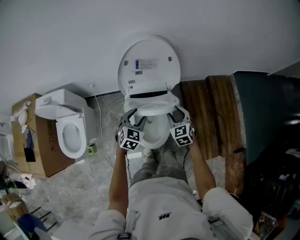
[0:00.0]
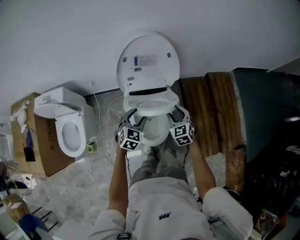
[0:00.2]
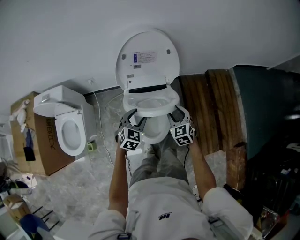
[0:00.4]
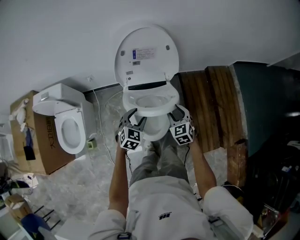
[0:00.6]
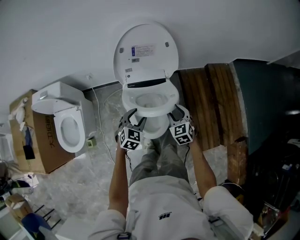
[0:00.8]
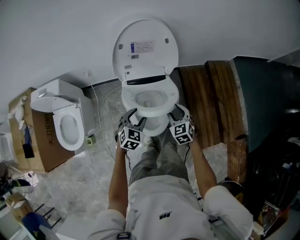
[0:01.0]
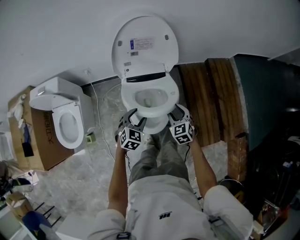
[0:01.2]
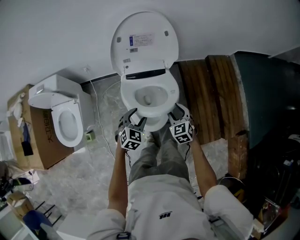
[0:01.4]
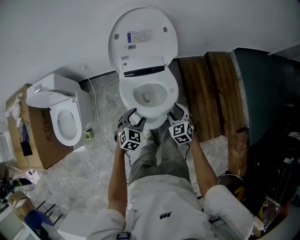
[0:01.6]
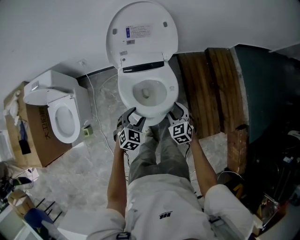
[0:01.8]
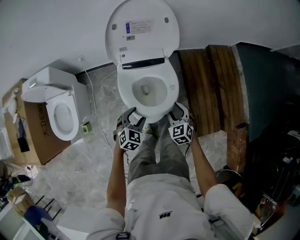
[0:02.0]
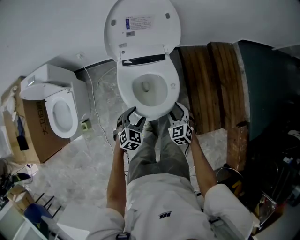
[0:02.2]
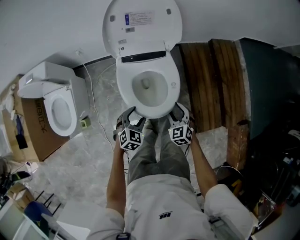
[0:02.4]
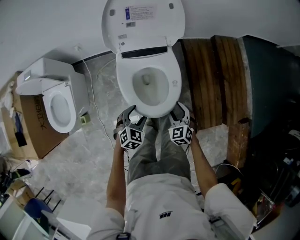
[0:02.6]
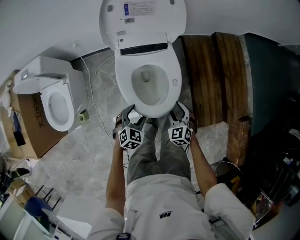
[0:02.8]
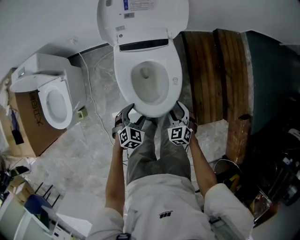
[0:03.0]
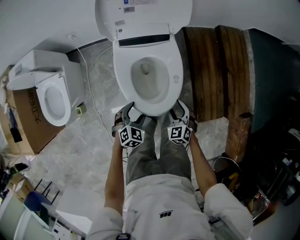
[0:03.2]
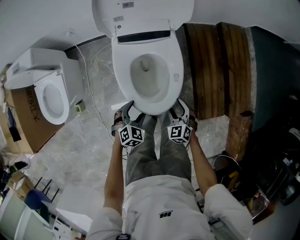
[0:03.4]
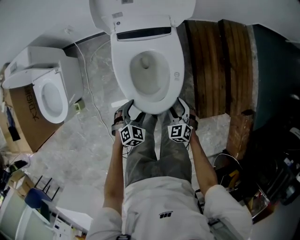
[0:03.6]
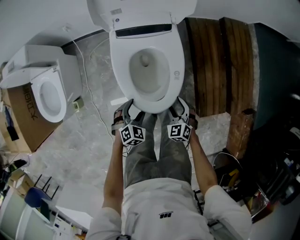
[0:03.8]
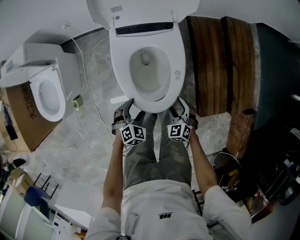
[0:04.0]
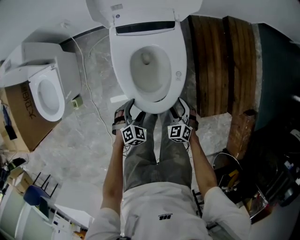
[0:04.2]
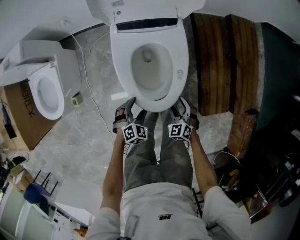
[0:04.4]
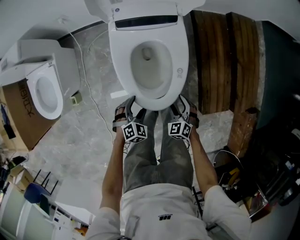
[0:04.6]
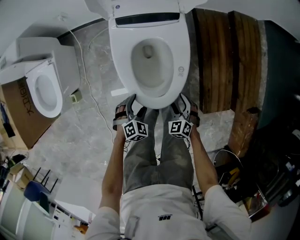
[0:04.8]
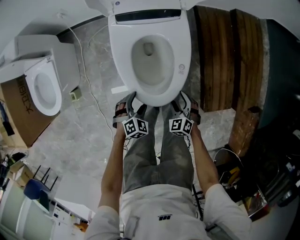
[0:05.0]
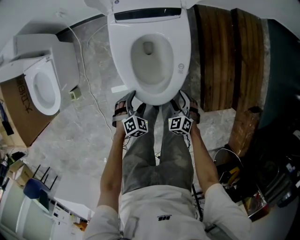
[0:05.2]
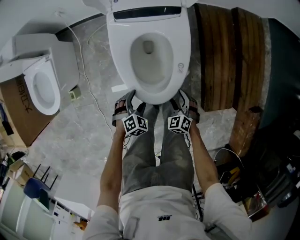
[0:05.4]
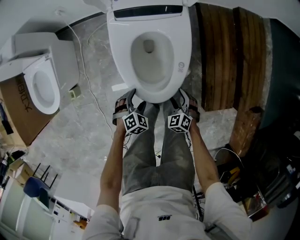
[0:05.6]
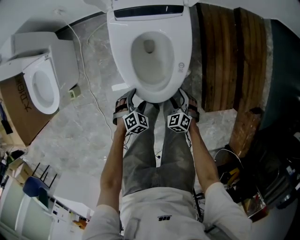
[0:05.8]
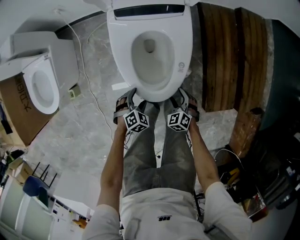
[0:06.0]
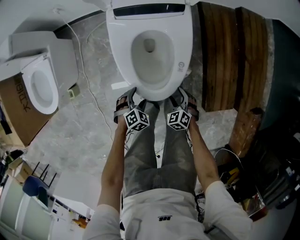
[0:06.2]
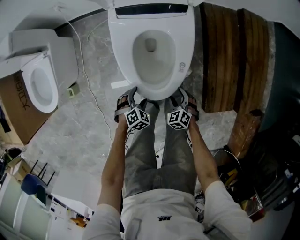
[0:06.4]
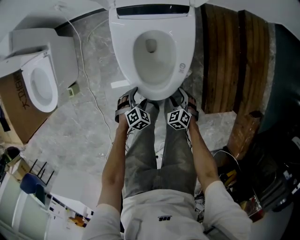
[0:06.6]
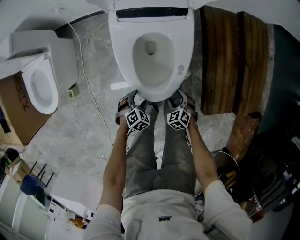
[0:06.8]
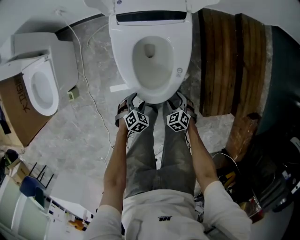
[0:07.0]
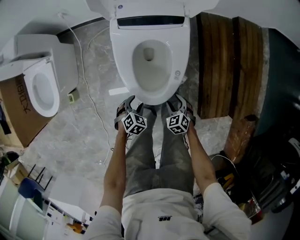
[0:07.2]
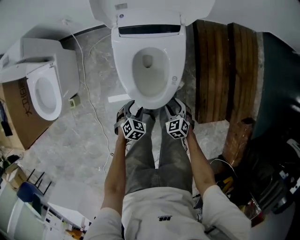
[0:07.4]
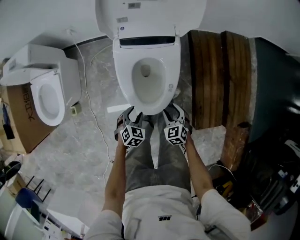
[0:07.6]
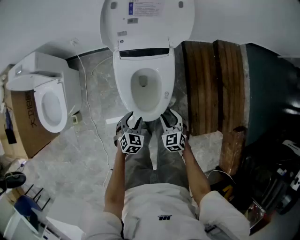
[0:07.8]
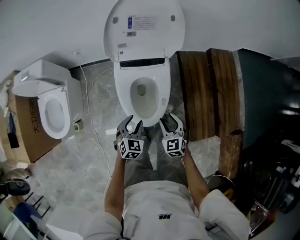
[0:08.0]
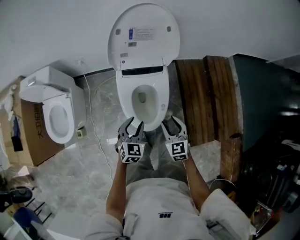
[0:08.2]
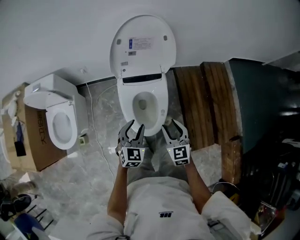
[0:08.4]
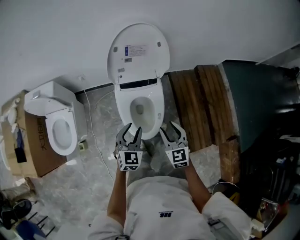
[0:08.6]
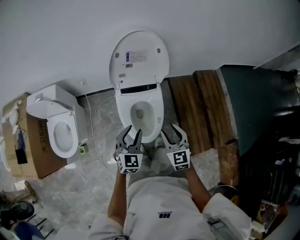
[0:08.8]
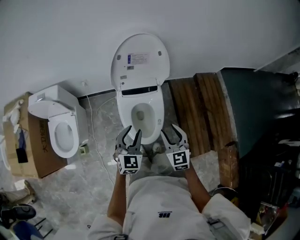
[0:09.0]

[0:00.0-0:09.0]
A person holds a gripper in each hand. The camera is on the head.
0:00.0 to 0:01.6: Both grippers move backward and downward, about 15 cm.
0:01.6 to 0:03.0: The two grippers go some 15 cm downward and backward.
0:03.0 to 0:04.4: The two grippers go approximately 10 cm downward.
0:04.4 to 0:06.0: Both grippers travel together downward, approximately 10 cm.
0:06.0 to 0:07.6: The grippers both shift upward by some 10 cm. The left gripper changes its angle by about 20 degrees, and closes up.
0:07.6 to 0:09.0: Both grippers travel together upward, approximately 40 cm. The left gripper angles its fingers upward, by about 40 degrees; the right gripper rotates about 30 degrees.

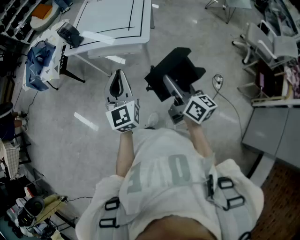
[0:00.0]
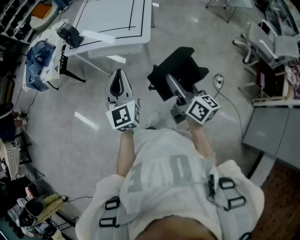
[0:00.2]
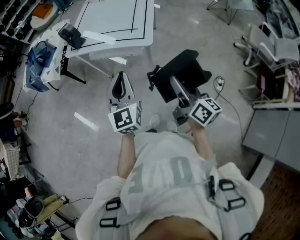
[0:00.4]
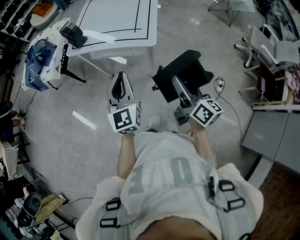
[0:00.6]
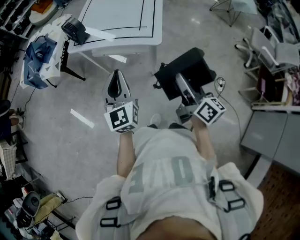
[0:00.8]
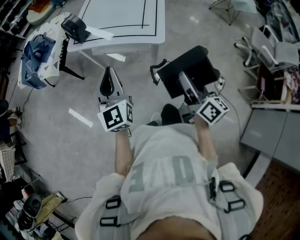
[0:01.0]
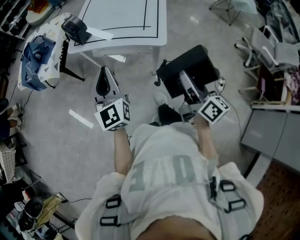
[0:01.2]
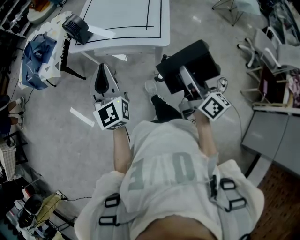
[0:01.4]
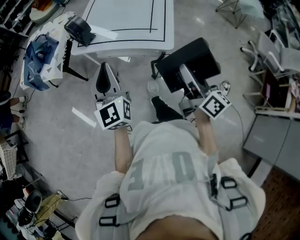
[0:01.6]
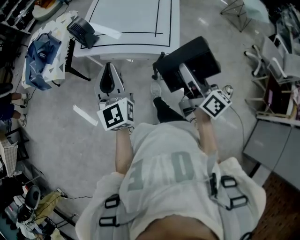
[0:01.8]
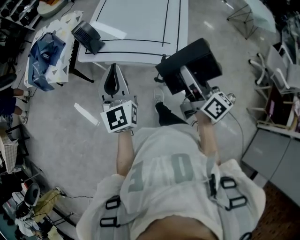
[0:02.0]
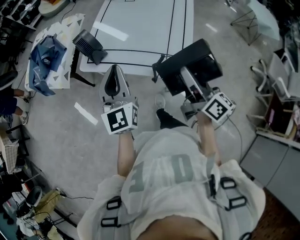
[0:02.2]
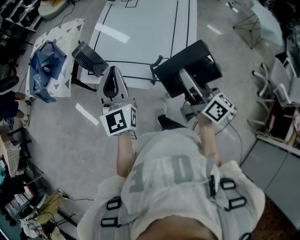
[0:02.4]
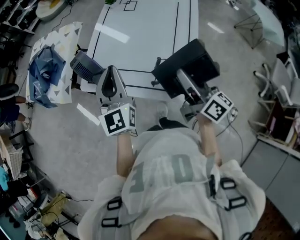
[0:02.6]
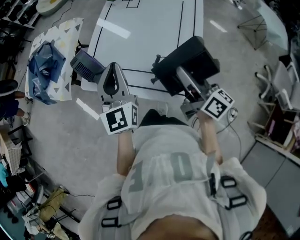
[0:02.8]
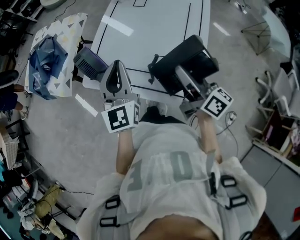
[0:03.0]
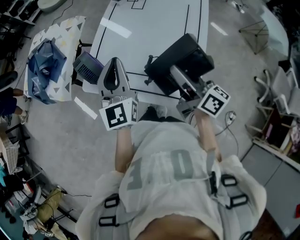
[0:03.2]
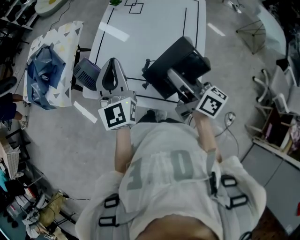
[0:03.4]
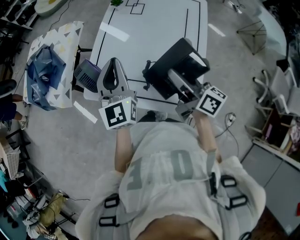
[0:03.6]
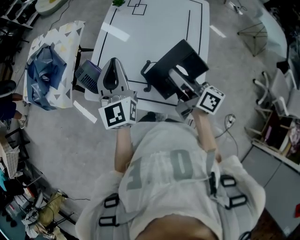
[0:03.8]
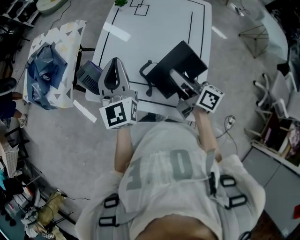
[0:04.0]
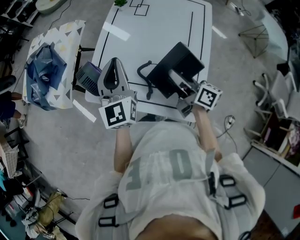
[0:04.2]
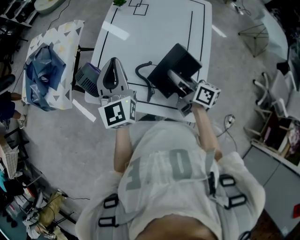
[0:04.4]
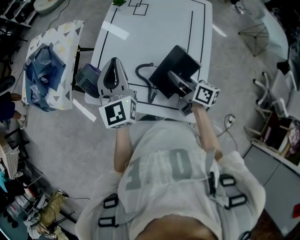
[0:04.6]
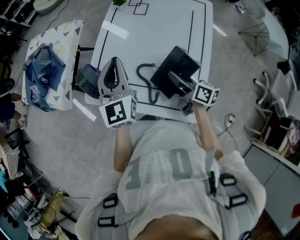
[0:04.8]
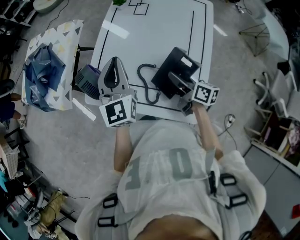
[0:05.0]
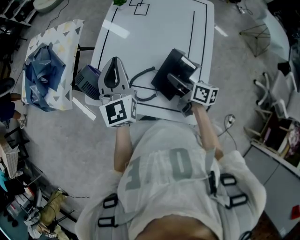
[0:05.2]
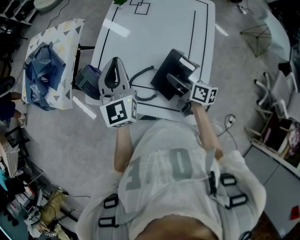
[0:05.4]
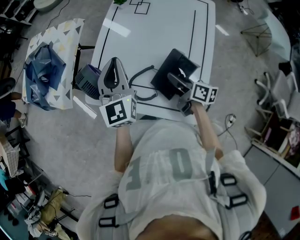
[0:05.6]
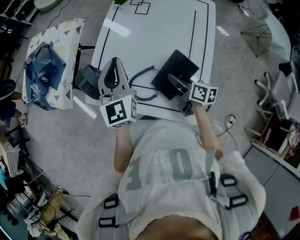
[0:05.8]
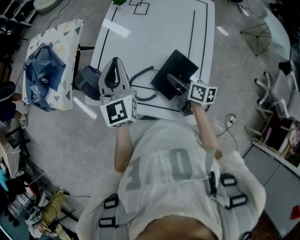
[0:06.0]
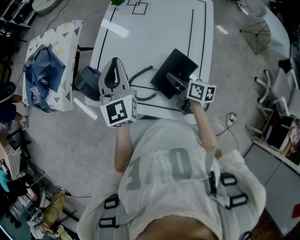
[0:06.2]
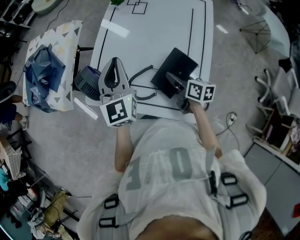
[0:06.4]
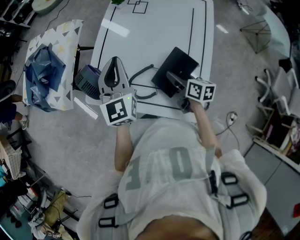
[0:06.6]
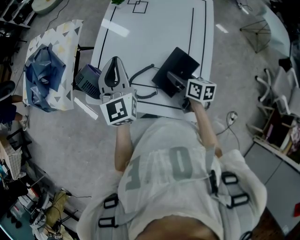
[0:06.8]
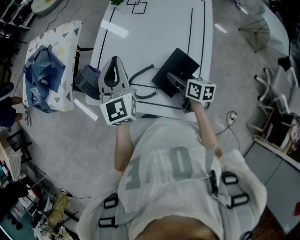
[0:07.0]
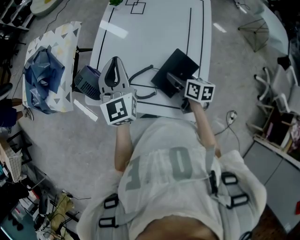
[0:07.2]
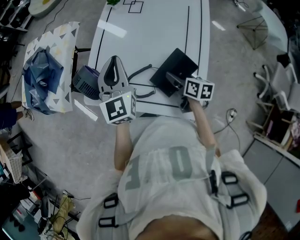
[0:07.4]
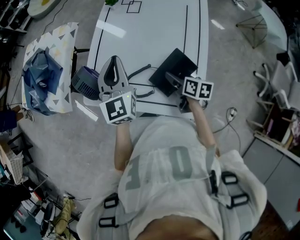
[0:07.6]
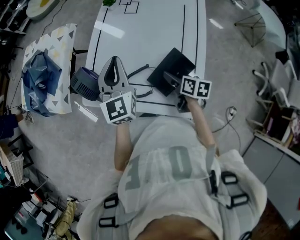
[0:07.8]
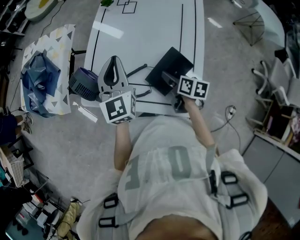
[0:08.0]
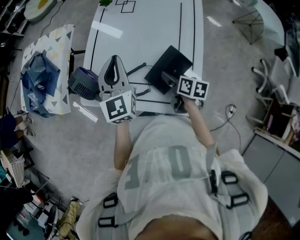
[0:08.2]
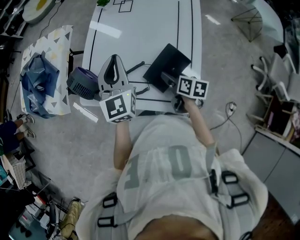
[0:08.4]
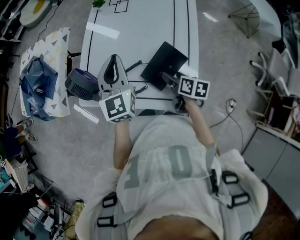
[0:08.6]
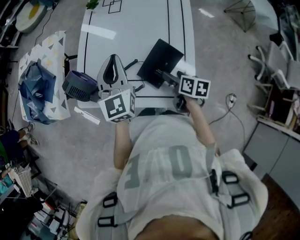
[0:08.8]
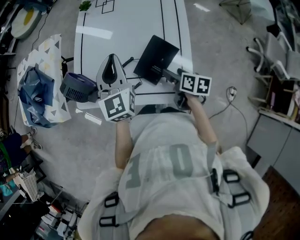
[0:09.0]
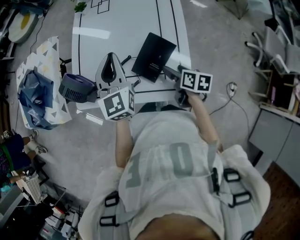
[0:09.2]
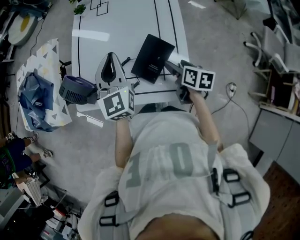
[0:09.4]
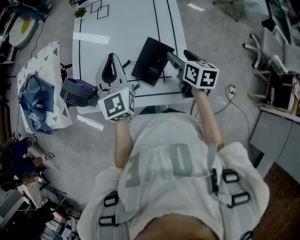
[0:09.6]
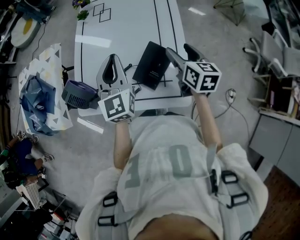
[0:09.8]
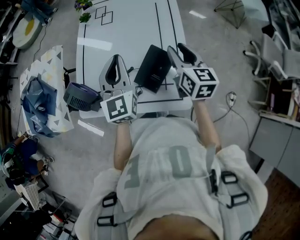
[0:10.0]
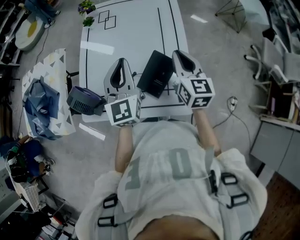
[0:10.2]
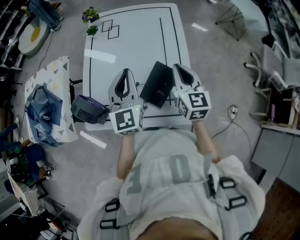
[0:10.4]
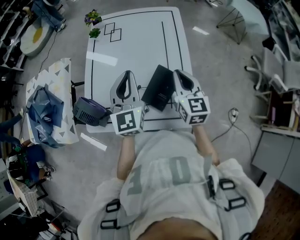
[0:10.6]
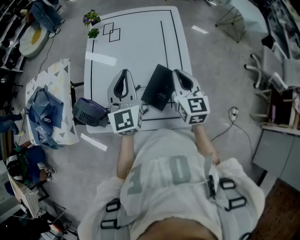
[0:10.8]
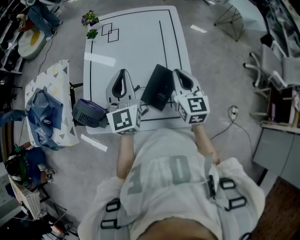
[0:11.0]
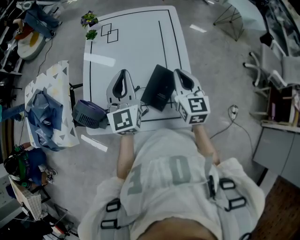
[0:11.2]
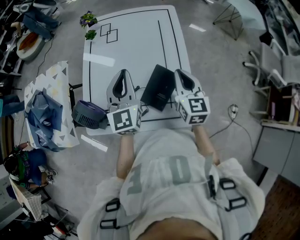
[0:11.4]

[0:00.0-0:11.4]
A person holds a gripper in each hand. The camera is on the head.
0:00.0 to 0:01.4: The right gripper goes about 10 cm forward. Meanwhile the left gripper travels to the left and forward by some 20 cm.
0:01.4 to 0:02.8: The grippers both shift forward by roughly 35 cm.
0:02.8 to 0:04.2: The right gripper is displaced forward and downward by approximately 15 cm. The left gripper goes roughly 10 cm forward.
0:04.2 to 0:05.6: The right gripper shifts about 10 cm downward.
0:05.6 to 0:07.2: The right gripper opens its fingers.
0:07.2 to 0:08.6: The left gripper ends up about 5 cm from where it was. Meanwhile the right gripper is displaced backward by roughly 5 cm.
0:08.6 to 0:10.0: The right gripper heads upward, covering approximately 20 cm, turns by approximately 40 degrees, and closes up, while the left gripper shifts roughly 5 cm to the right.
0:10.0 to 0:11.4: The right gripper closes.

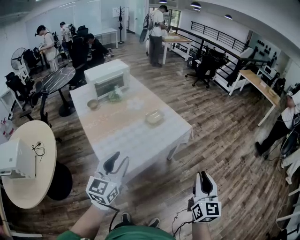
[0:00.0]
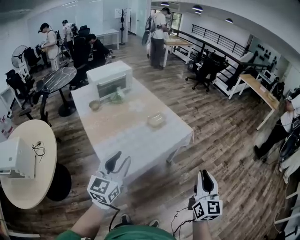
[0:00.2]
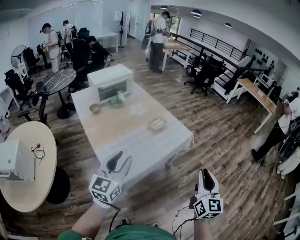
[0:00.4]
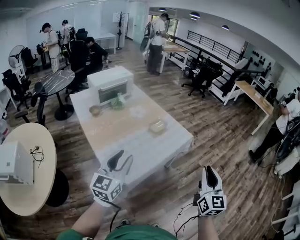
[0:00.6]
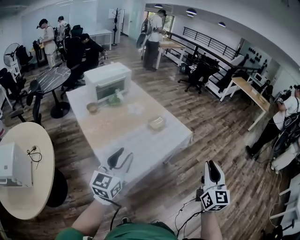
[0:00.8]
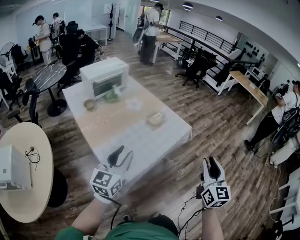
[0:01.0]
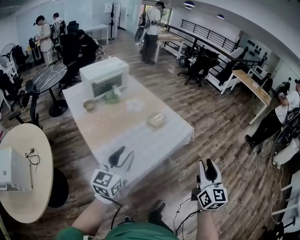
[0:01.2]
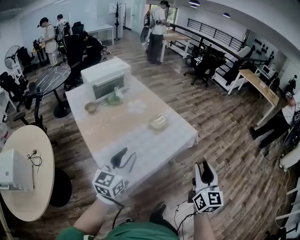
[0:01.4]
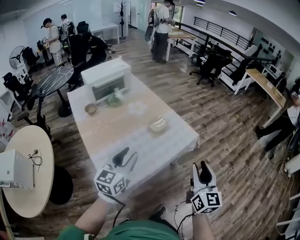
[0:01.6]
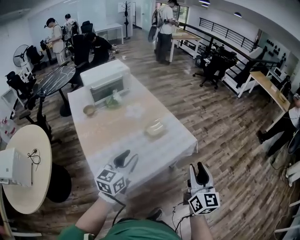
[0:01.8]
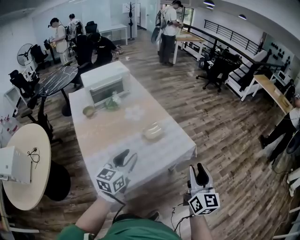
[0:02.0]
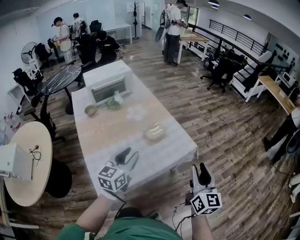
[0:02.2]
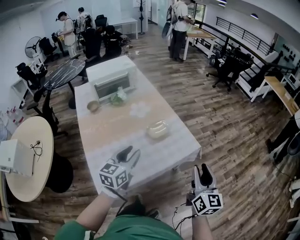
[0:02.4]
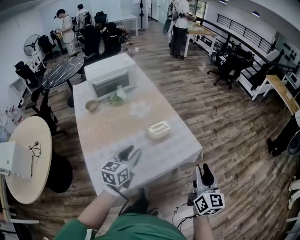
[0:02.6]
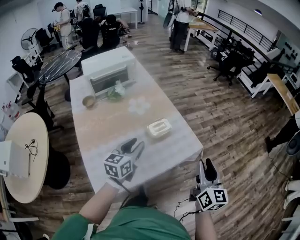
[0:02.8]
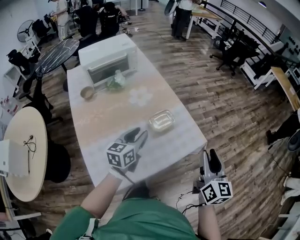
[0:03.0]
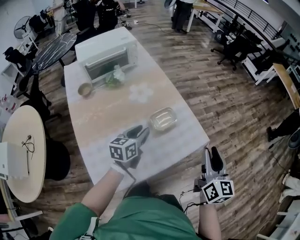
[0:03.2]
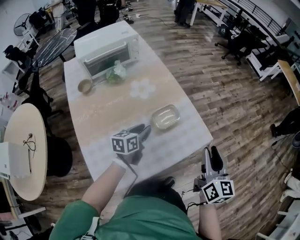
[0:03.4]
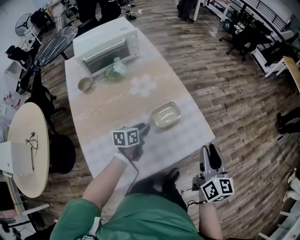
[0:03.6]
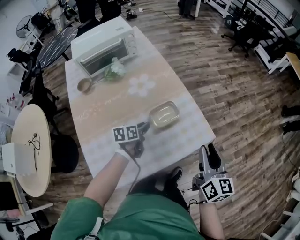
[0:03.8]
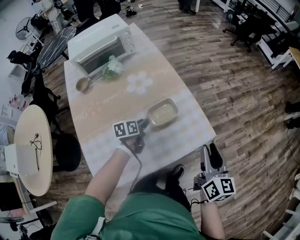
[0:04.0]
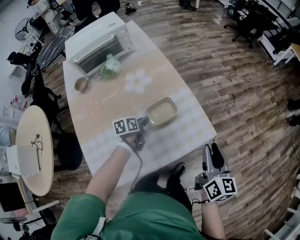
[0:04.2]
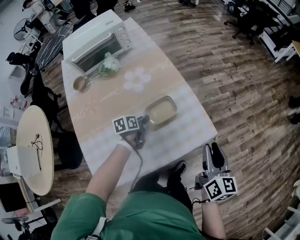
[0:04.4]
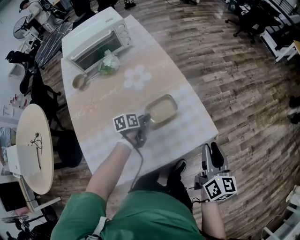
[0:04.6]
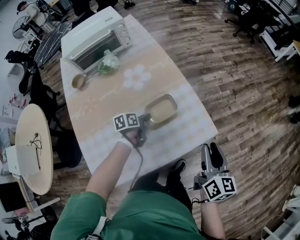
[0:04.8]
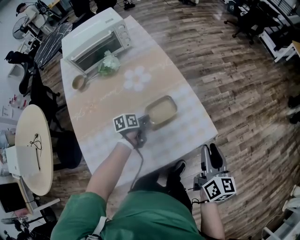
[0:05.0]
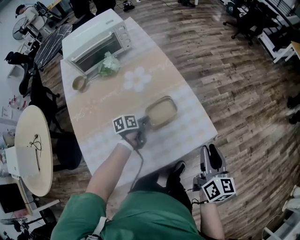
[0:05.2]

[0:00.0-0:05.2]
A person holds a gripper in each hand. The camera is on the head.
0:00.0 to 0:01.8: Both grippers move forward, approximately 20 cm.
0:01.8 to 0:03.4: The left gripper heads forward and downward, covering about 35 cm, and turns by approximately 30 degrees. Meanwhile the right gripper moves forward, approximately 25 cm.
0:03.4 to 0:05.2: The left gripper goes approximately 15 cm downward and forward, changes its angle by about 30 degrees, and closes up. The right gripper travels downward, to the right and forward by some 10 cm.
